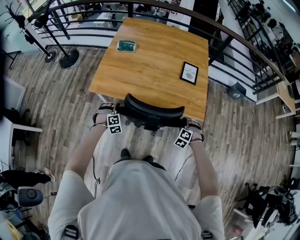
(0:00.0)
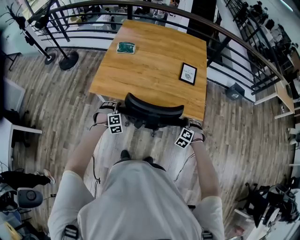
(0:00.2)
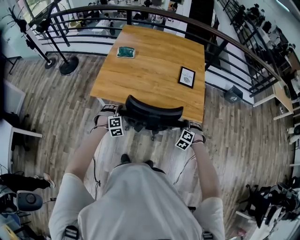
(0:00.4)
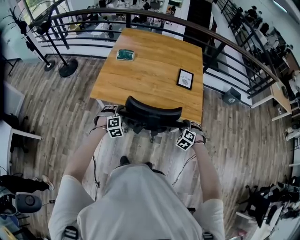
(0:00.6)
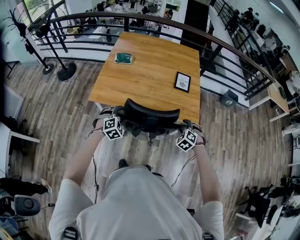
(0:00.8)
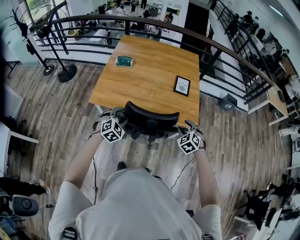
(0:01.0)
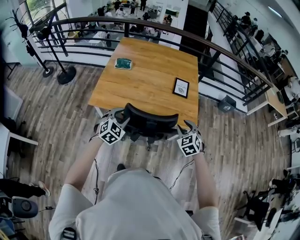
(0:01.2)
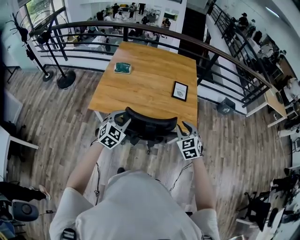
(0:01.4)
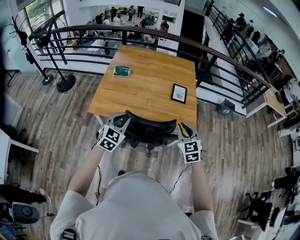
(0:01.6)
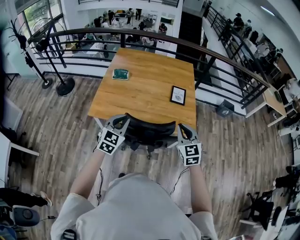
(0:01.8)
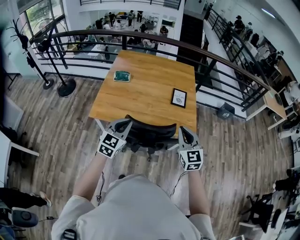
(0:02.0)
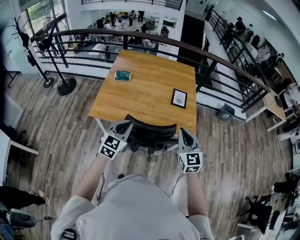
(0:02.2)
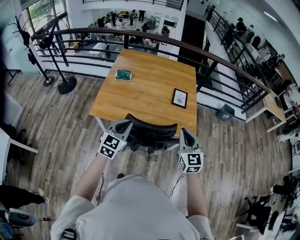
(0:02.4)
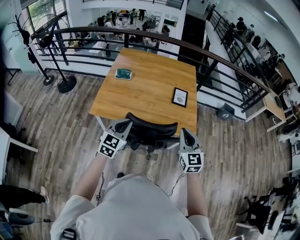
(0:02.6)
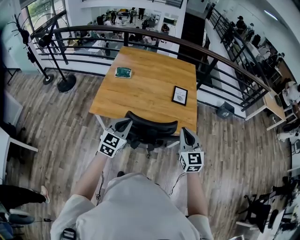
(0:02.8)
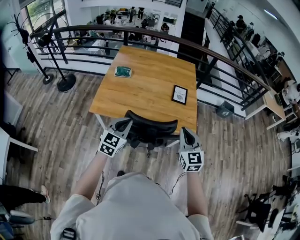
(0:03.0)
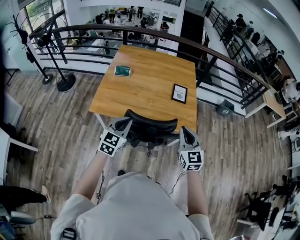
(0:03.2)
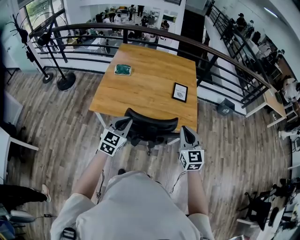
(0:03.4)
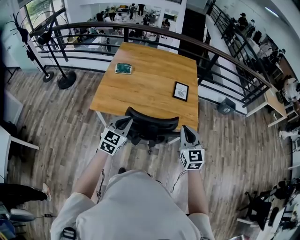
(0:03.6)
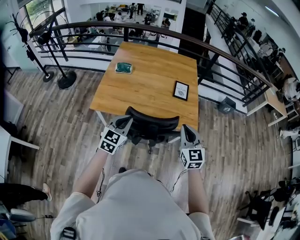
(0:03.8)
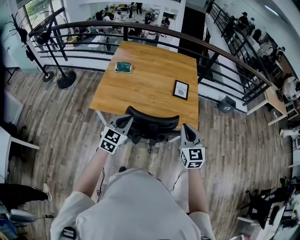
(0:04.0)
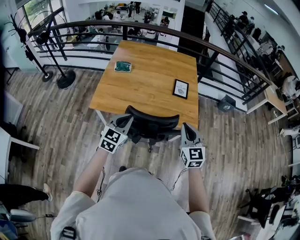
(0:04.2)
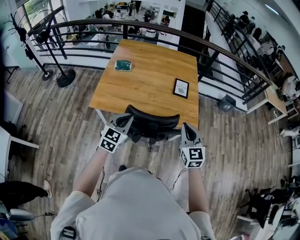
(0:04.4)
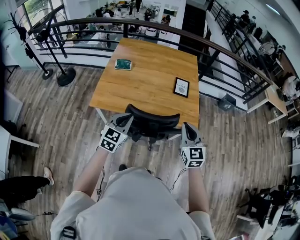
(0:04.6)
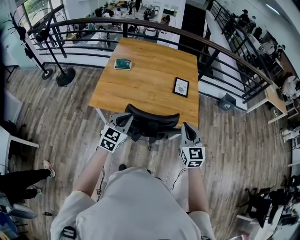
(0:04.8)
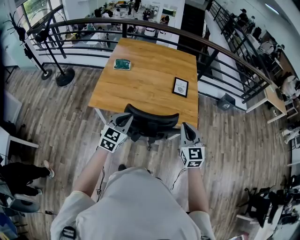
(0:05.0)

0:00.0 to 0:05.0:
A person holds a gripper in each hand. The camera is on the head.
0:00.0 to 0:01.6: Both grippers move upward, approximately 25 cm. The left gripper points its fingers roughly 30 degrees further upward, and closes; the right gripper tips its fingers upward by about 40 degrees, and closes up.
0:01.6 to 0:03.4: The right gripper shifts by roughly 5 cm.
0:03.4 to 0:05.0: Neither gripper changes place.

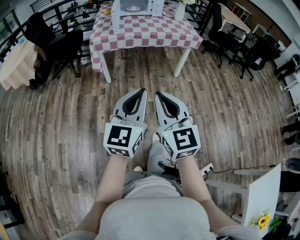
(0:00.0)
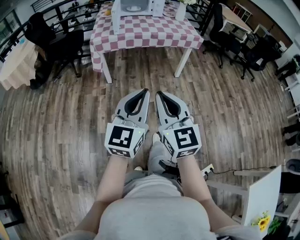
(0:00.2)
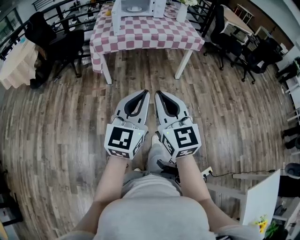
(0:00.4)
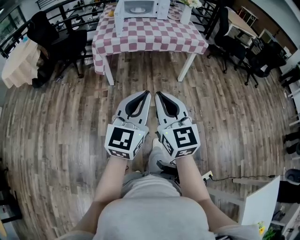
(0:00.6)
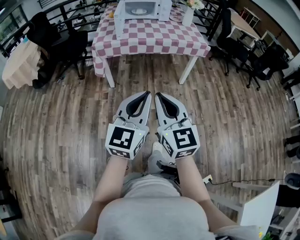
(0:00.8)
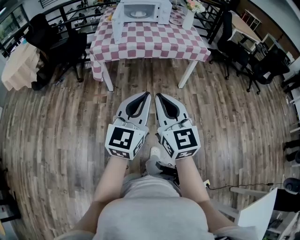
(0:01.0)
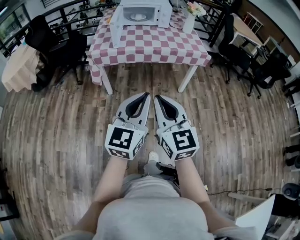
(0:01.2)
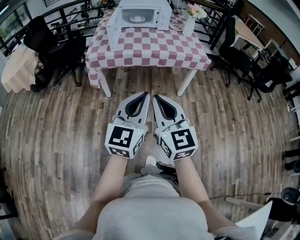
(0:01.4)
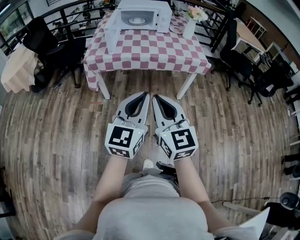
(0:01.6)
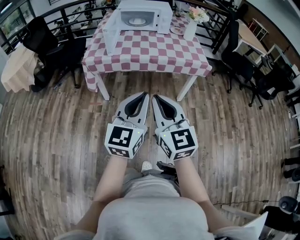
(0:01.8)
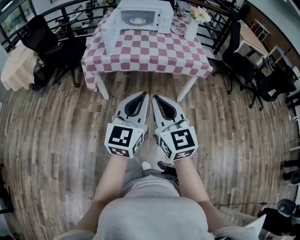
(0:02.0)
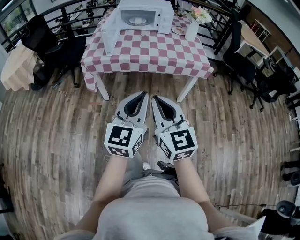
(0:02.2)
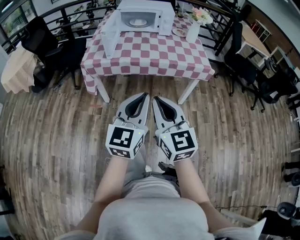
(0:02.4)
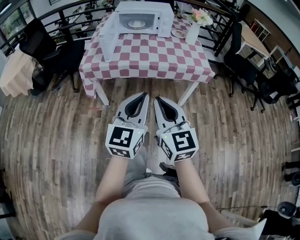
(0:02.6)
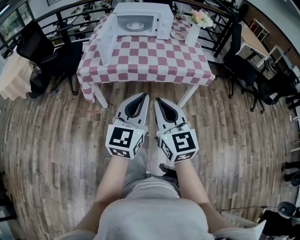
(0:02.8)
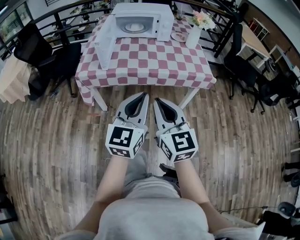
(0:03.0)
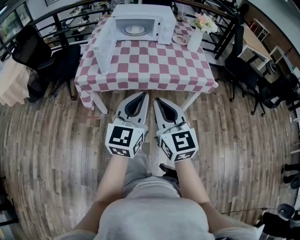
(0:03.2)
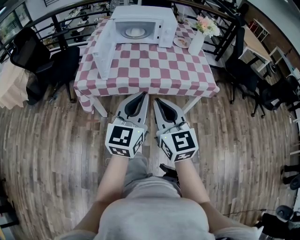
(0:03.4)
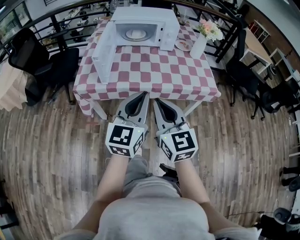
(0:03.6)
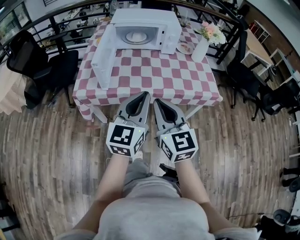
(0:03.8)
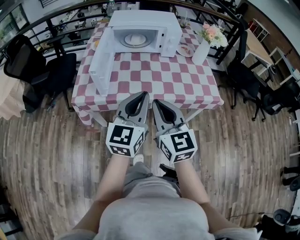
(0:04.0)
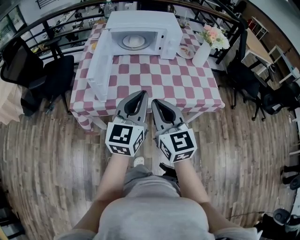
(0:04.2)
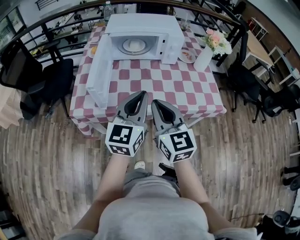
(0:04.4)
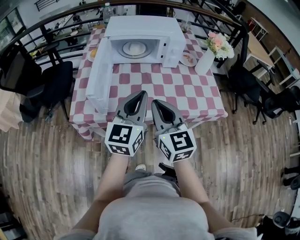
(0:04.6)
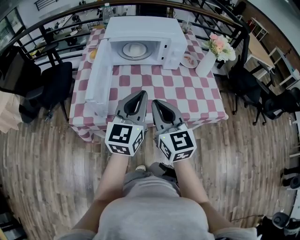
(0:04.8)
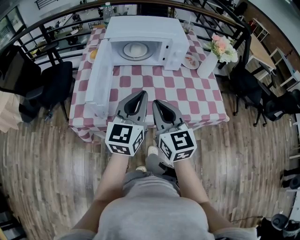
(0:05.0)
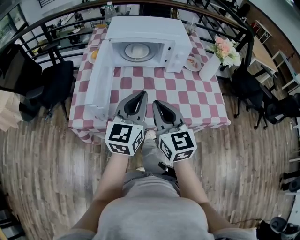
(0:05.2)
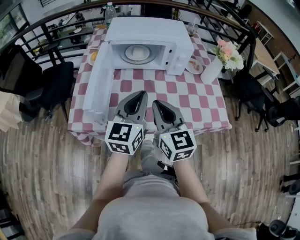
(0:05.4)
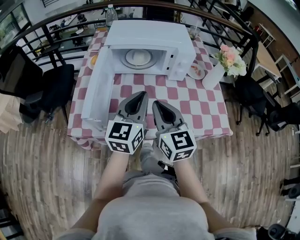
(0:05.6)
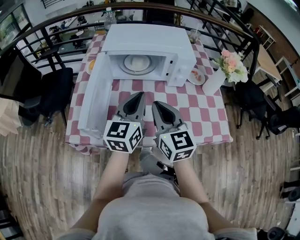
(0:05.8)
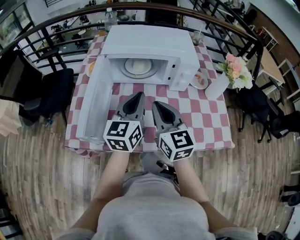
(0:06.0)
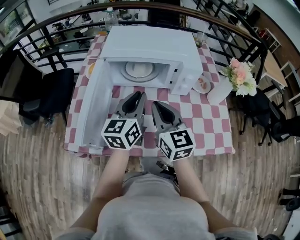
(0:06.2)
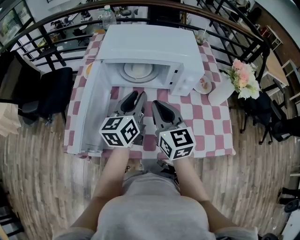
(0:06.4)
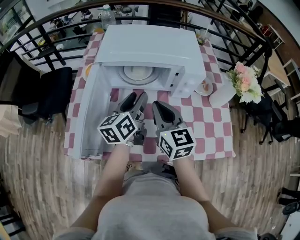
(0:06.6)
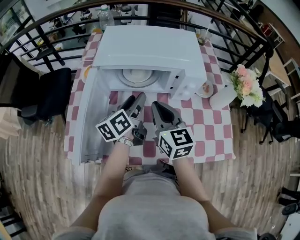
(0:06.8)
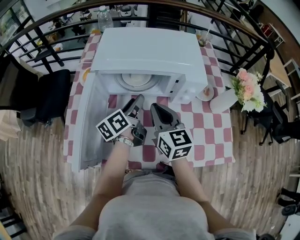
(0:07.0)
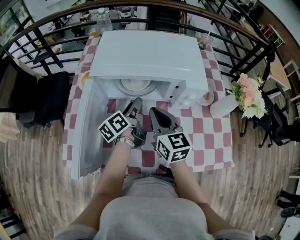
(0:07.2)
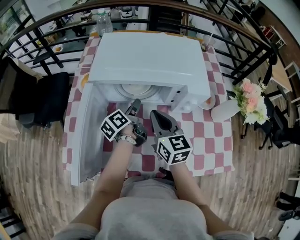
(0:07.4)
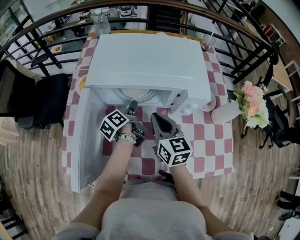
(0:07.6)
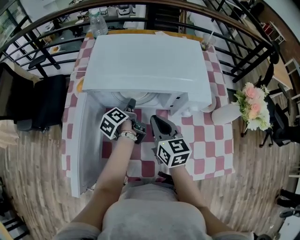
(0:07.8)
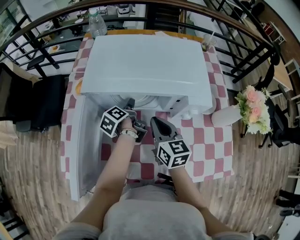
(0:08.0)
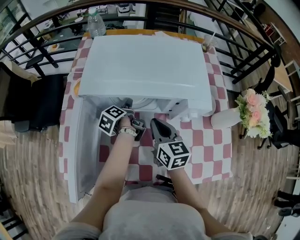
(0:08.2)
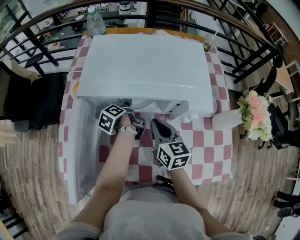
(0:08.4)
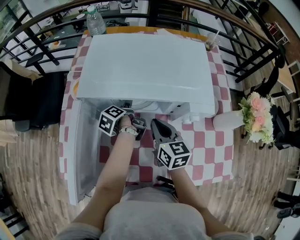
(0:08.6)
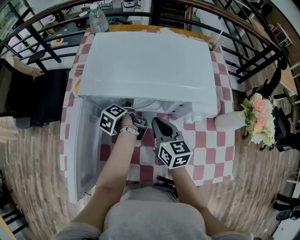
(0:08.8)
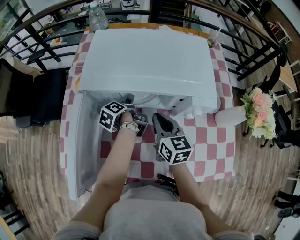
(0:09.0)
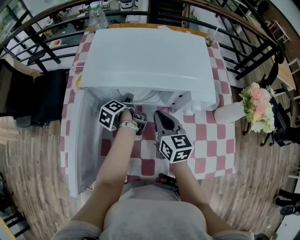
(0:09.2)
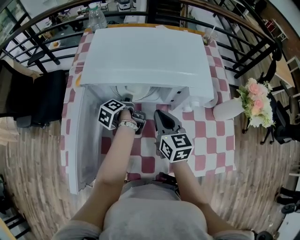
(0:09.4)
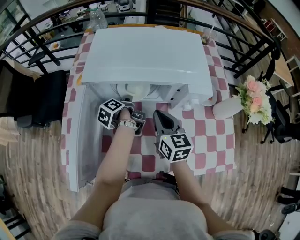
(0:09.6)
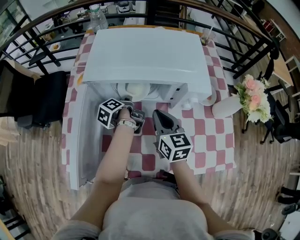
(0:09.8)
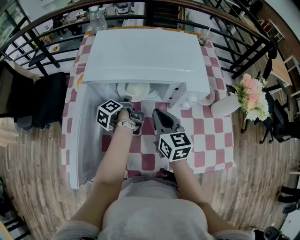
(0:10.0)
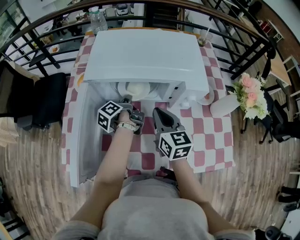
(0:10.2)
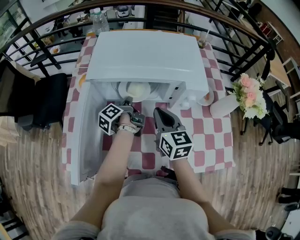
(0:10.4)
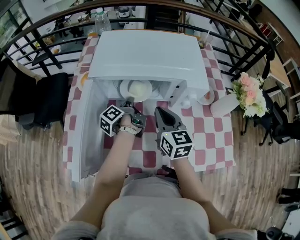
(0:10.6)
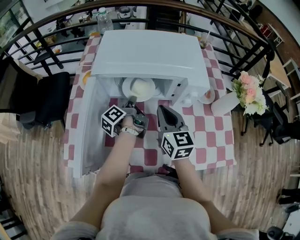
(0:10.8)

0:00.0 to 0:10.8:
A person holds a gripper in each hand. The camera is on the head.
0:00.0 to 0:01.6: Both grippers move forward, roughly 25 cm.
0:01.6 to 0:03.0: The grippers both shift forward by approximately 15 cm.
0:03.0 to 0:04.6: The grippers both shift forward by about 30 cm.
0:04.6 to 0:06.2: Both grippers travel together forward, roughly 20 cm.
0:06.2 to 0:07.8: The right gripper moves forward and downward, roughly 15 cm, while the left gripper goes approximately 25 cm downward and forward, twists some 60 degrees counterclockwise, seen from behind, and opens its fingers.
0:07.8 to 0:09.2: The grippers make only small movements.
0:09.2 to 0:10.8: The grippers both shift upward by some 5 cm. The left gripper rotates approximately 20 degrees, and closes up.

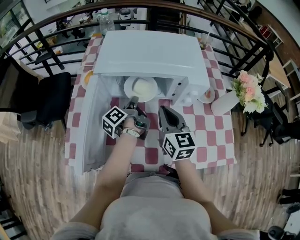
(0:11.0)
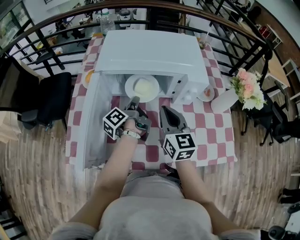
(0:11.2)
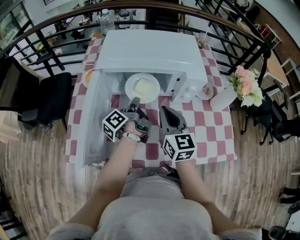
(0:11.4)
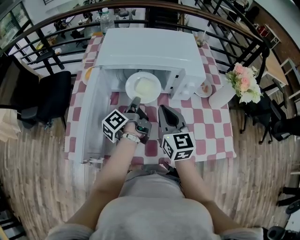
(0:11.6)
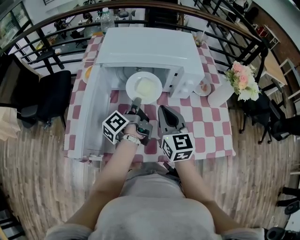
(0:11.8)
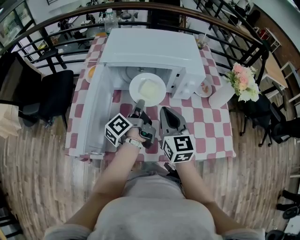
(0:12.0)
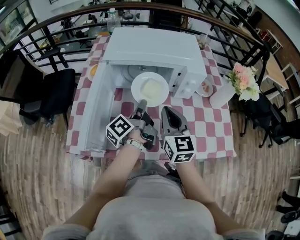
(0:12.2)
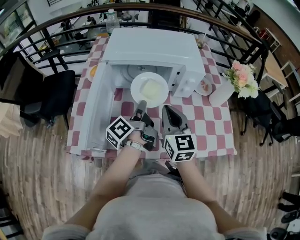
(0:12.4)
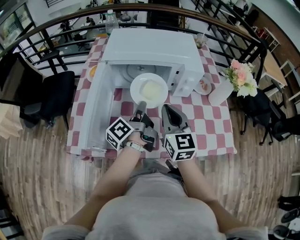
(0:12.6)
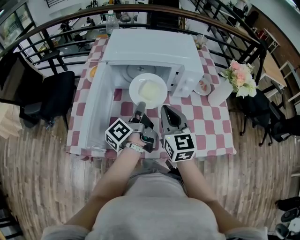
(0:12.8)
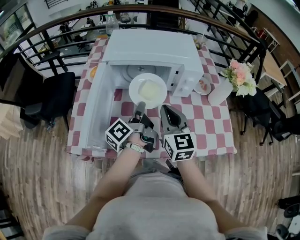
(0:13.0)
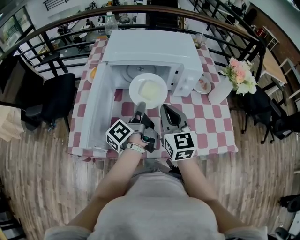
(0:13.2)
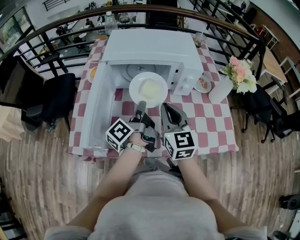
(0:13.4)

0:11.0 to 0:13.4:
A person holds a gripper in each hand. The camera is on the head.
0:11.0 to 0:12.2: The right gripper travels backward by about 10 cm. The left gripper travels backward and upward by roughly 10 cm.
0:12.2 to 0:13.4: The grippers move only a little.

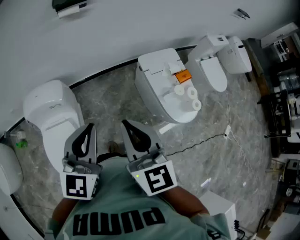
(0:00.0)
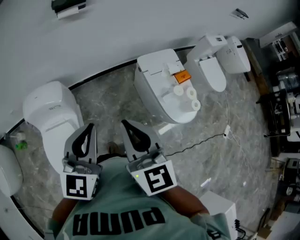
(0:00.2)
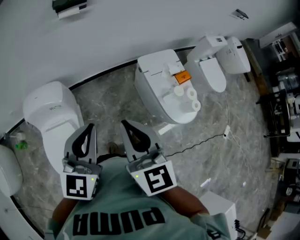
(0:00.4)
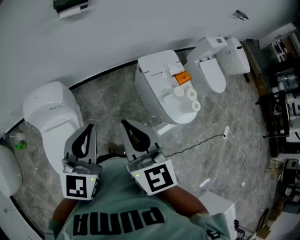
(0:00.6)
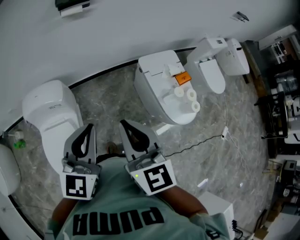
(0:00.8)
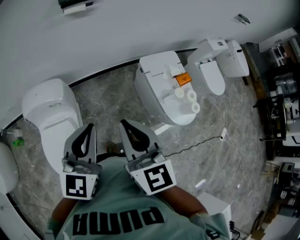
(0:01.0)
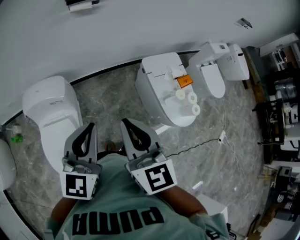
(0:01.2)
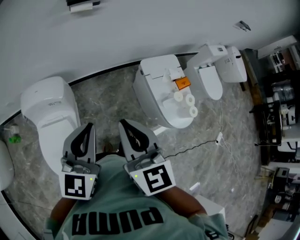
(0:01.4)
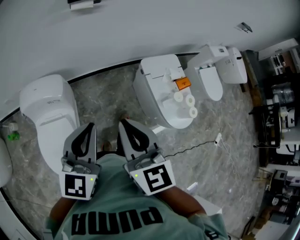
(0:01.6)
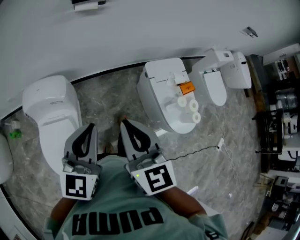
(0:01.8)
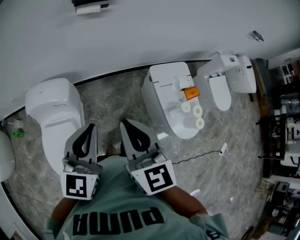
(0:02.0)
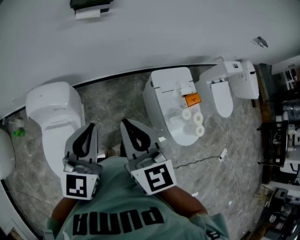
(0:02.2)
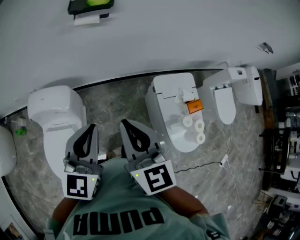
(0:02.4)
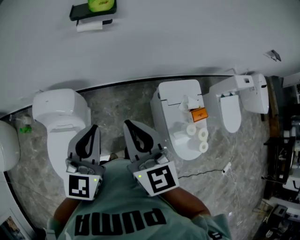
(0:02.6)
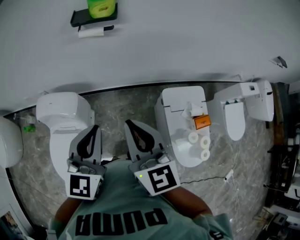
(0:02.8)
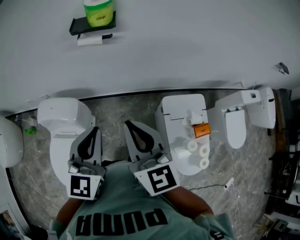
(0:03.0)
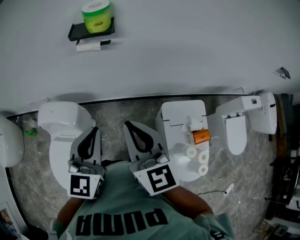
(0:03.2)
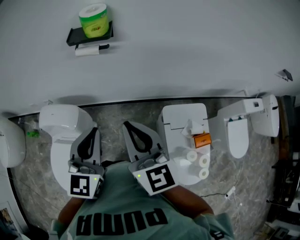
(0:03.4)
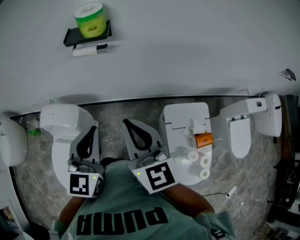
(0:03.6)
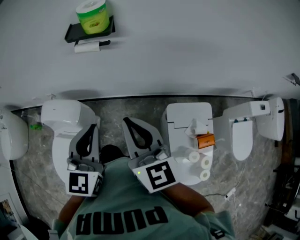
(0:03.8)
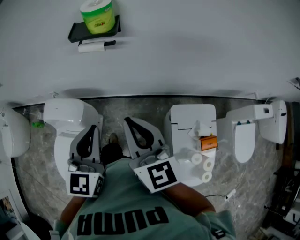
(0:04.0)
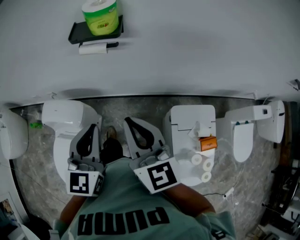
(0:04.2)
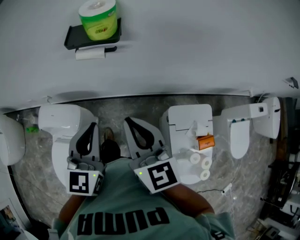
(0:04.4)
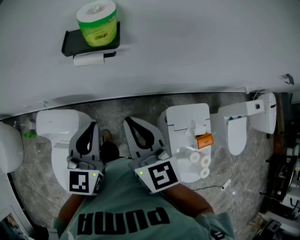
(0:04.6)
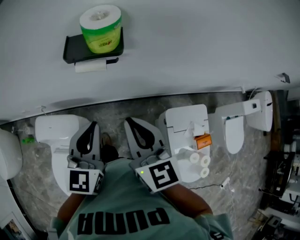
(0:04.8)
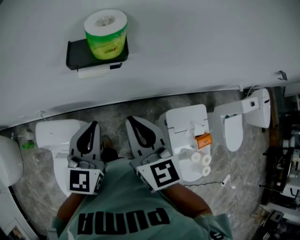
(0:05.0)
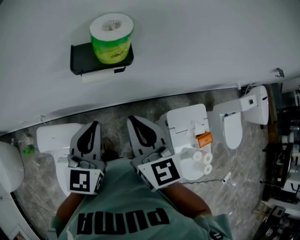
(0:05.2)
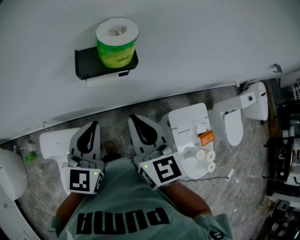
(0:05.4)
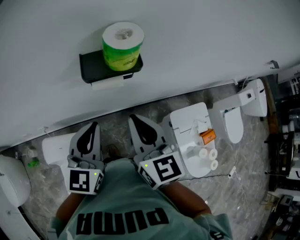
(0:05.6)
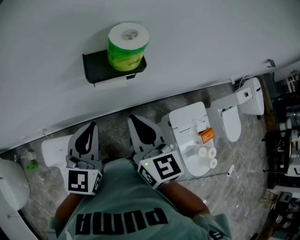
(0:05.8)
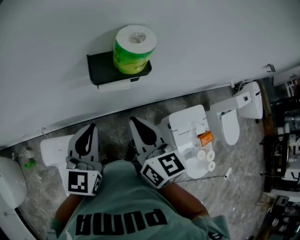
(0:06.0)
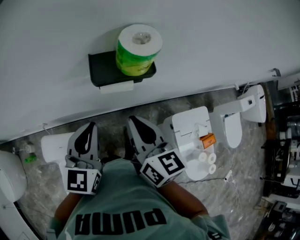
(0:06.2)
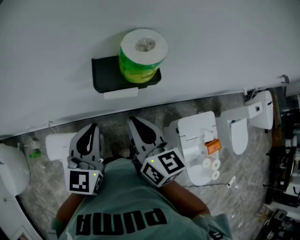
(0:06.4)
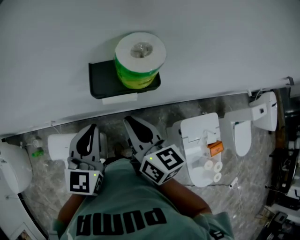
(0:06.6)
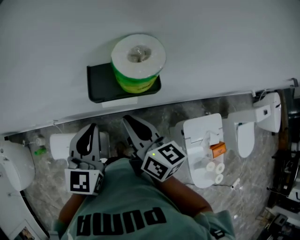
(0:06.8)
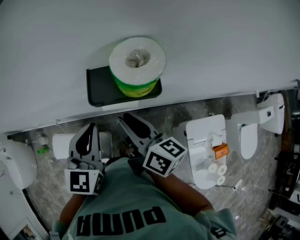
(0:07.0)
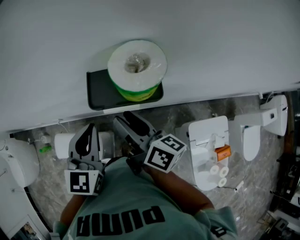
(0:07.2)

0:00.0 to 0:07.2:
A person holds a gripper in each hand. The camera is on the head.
0:00.0 to 0:01.4: The grippers make only small movements.
0:01.4 to 0:02.8: The two grippers go about 20 cm forward.
0:02.8 to 0:04.4: Both grippers travel together forward, some 15 cm.
0:04.4 to 0:05.8: The two grippers go roughly 15 cm to the left and forward.
0:05.8 to 0:07.2: The grippers both shift forward by about 10 cm. The right gripper twists roughly 40 degrees clockwise, seen from behind, and opens its fingers.
